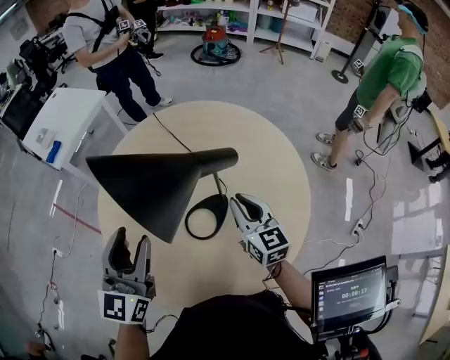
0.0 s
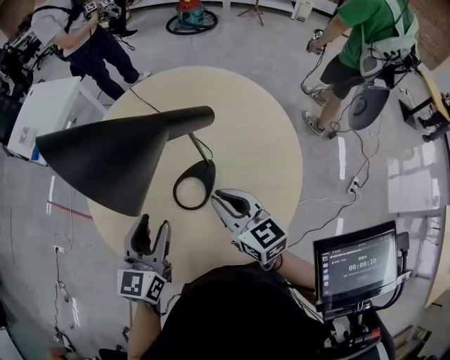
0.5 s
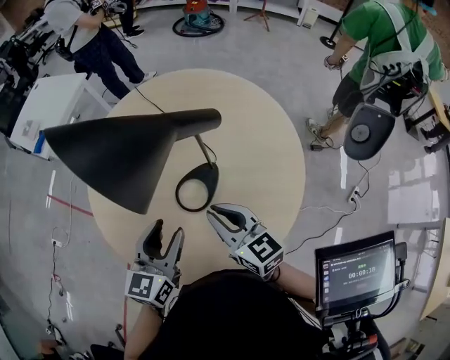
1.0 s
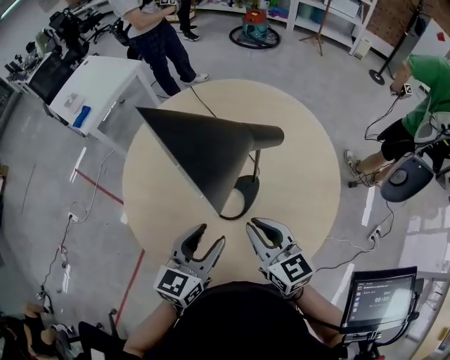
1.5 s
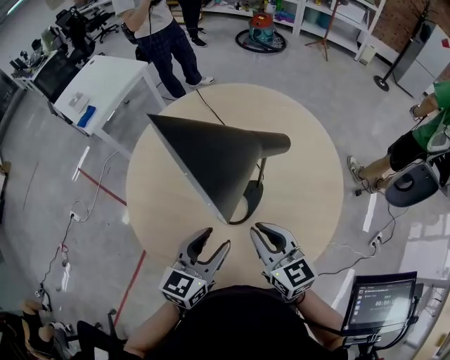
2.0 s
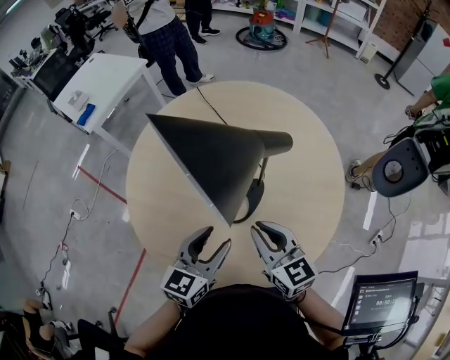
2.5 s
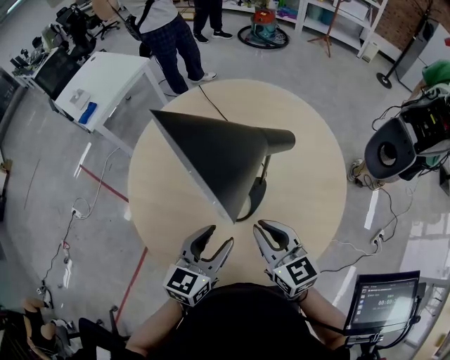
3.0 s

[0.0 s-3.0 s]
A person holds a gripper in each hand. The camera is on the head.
0.0 to 1.5 s: The right gripper moves backward and to the left, approximately 10 cm. Meanwhile the left gripper goes about 15 cm downward and to the right, and turns by roughly 20 degrees.
1.5 to 3.0 s: There are only small adjustments of the grippers.

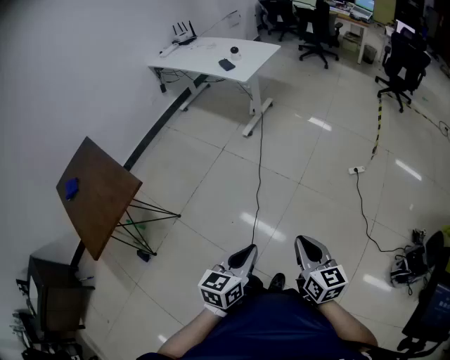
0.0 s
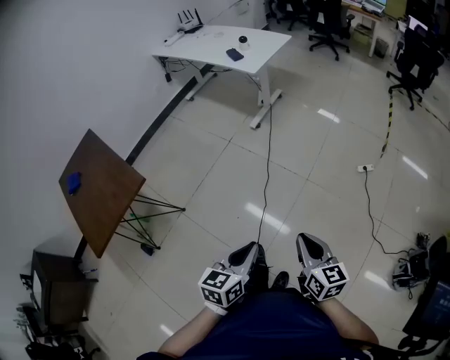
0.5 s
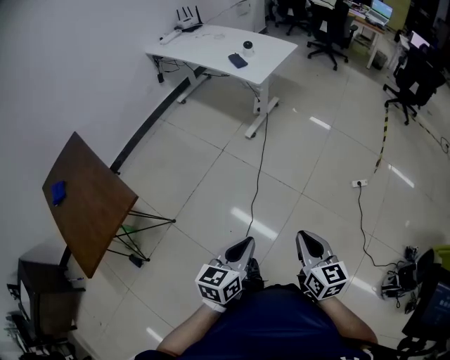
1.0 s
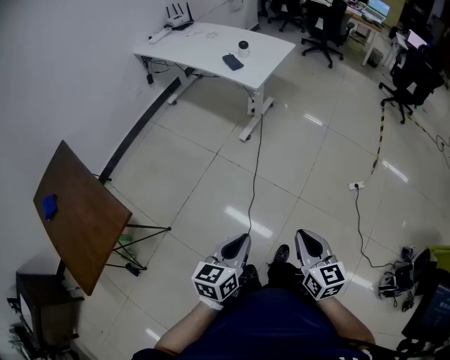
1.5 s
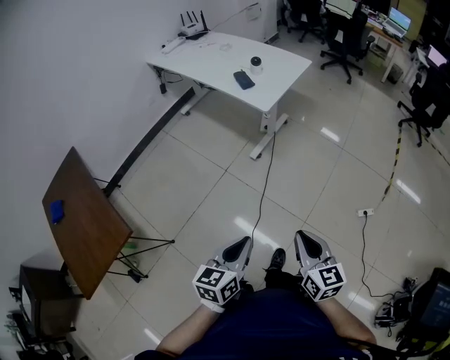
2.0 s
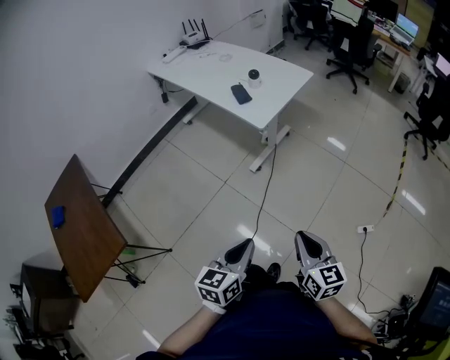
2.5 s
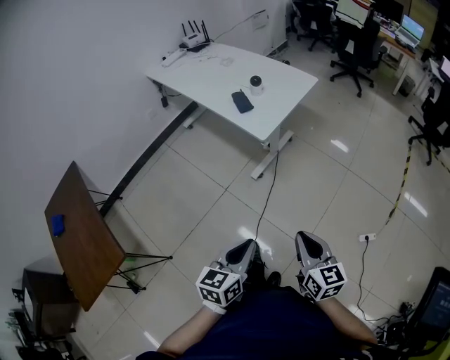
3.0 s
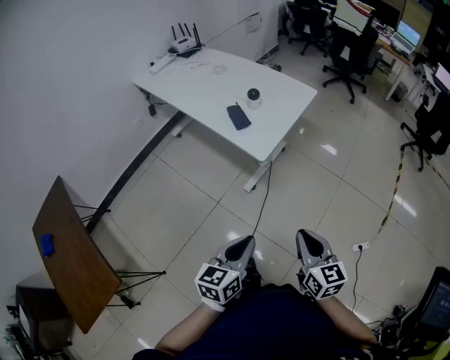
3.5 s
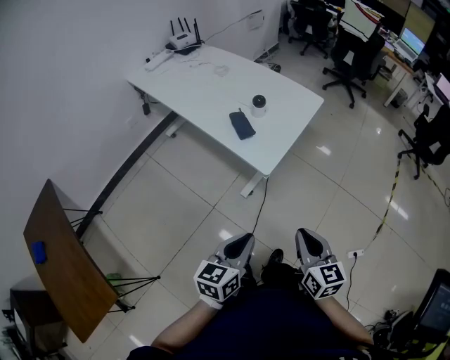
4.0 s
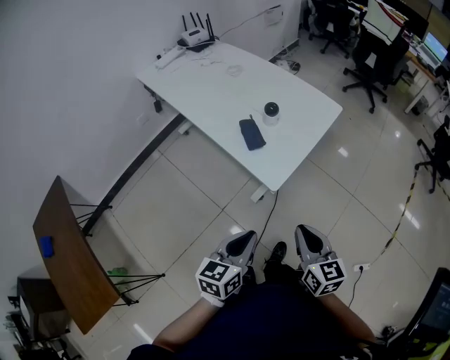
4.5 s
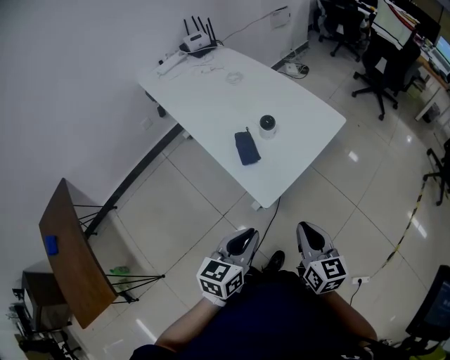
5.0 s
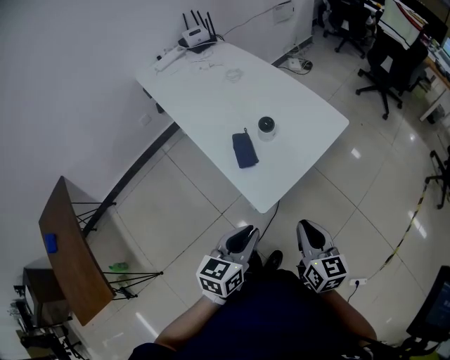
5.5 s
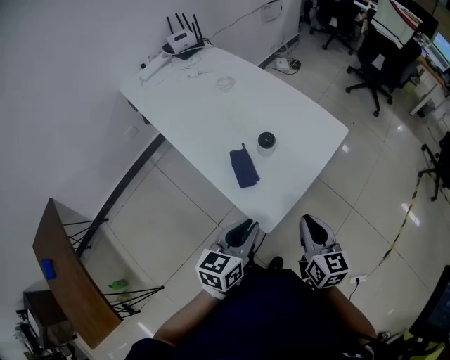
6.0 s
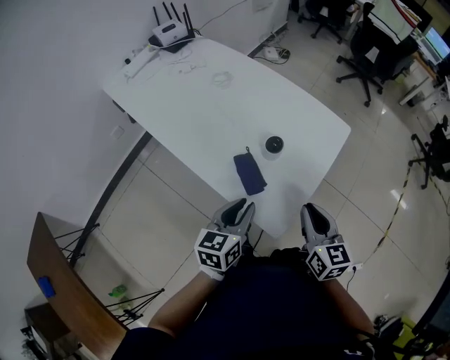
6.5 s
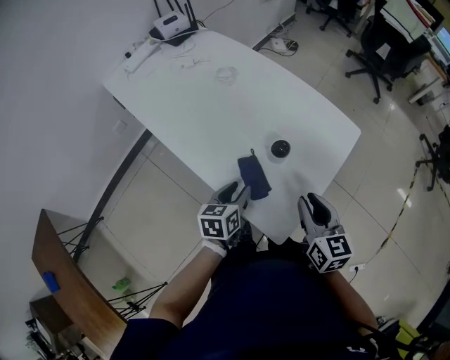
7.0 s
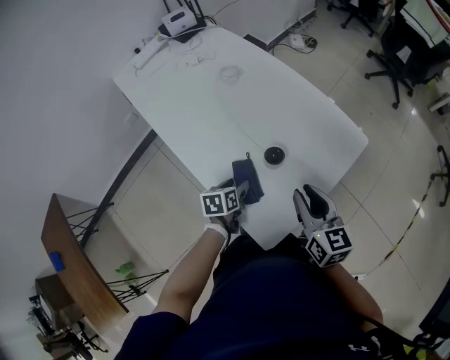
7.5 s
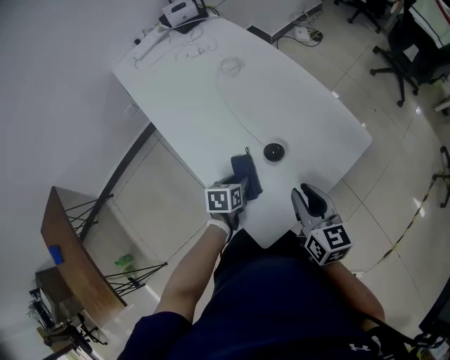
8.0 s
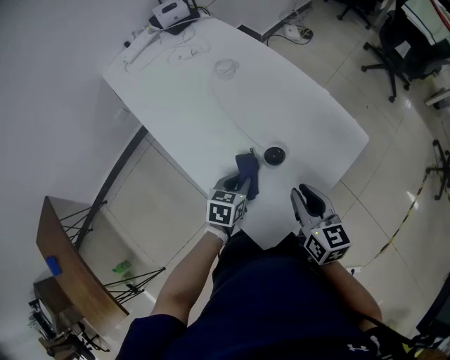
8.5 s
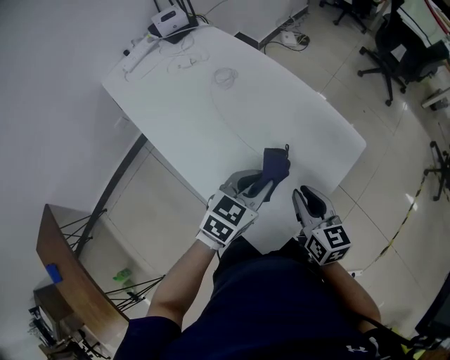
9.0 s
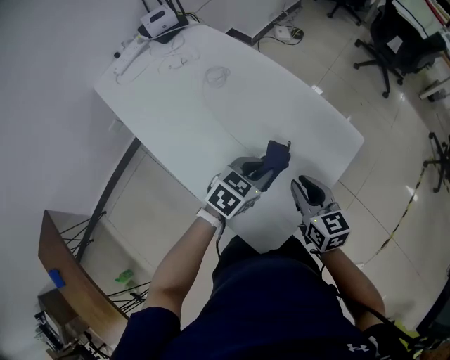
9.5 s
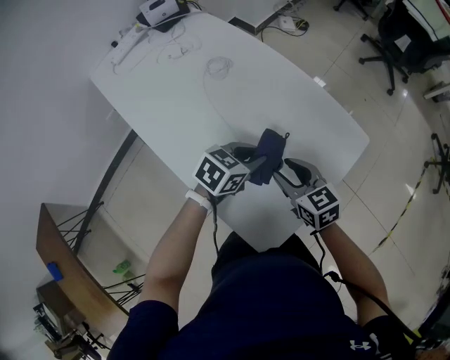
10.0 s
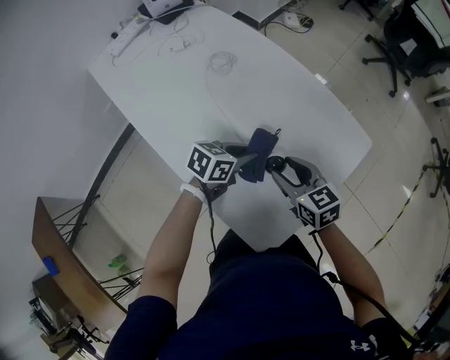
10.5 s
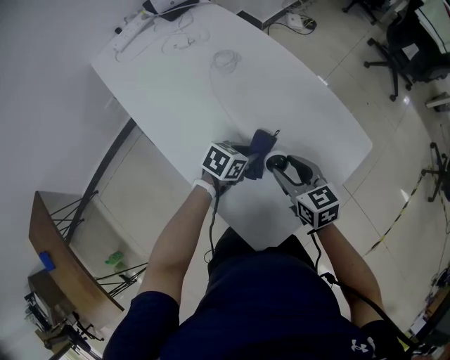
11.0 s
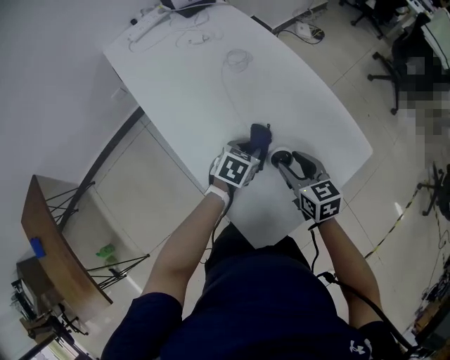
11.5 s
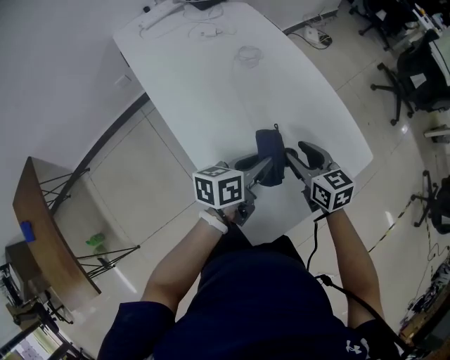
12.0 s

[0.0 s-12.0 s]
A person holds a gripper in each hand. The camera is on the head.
0.0 to 2.0 s: The two grippers go some 35 cm forward.
2.0 to 4.0 s: The grippers both shift forward by about 35 cm.
4.0 to 6.0 s: Both grippers travel together forward, roughly 30 cm.
6.0 to 8.0 s: The left gripper travels downward and forward by roughly 30 cm, tips its fingers downward by about 30 degrees, and opens, then closes once more, while the right gripper shifts about 15 cm forward, and opens its fingers.
8.0 to 10.0 s: The right gripper shifts some 10 cm forward, downward and to the left, while the left gripper travels upward, forward and to the right by about 15 cm, and changes its angle by roughly 50 degrees.
10.0 to 12.0 s: The left gripper goes downward and returns, some 10 cm each way, and turns by some 50 degrees.

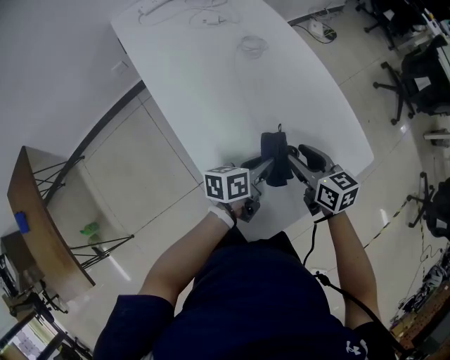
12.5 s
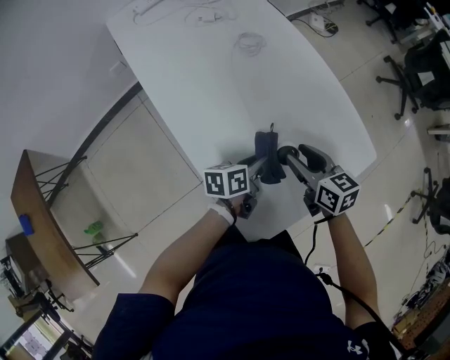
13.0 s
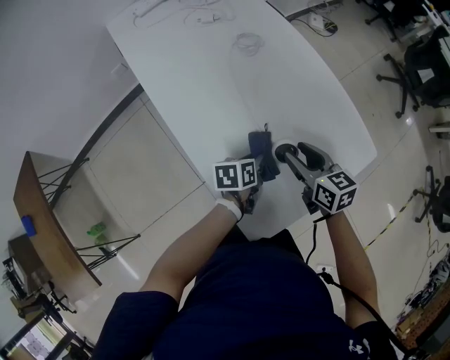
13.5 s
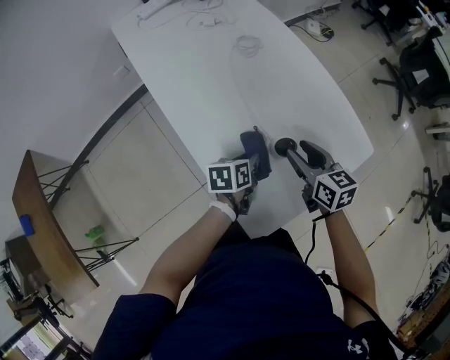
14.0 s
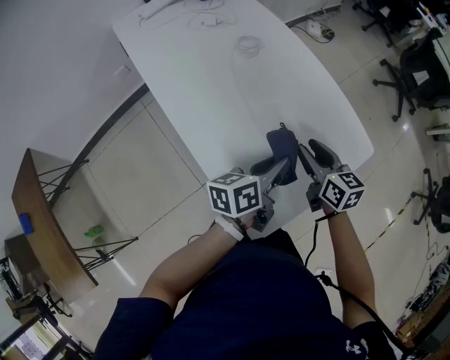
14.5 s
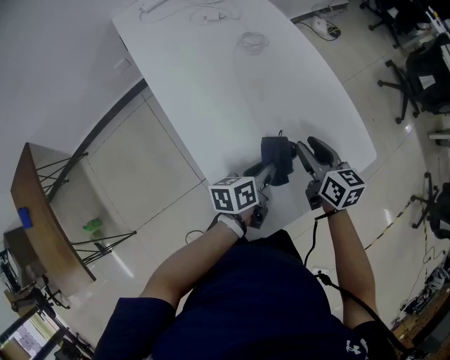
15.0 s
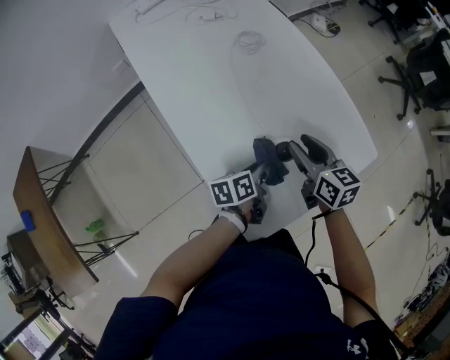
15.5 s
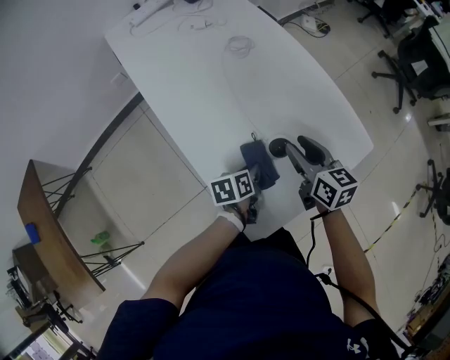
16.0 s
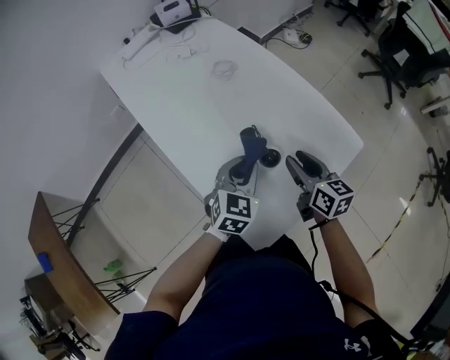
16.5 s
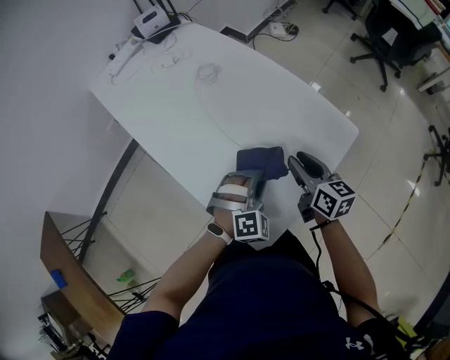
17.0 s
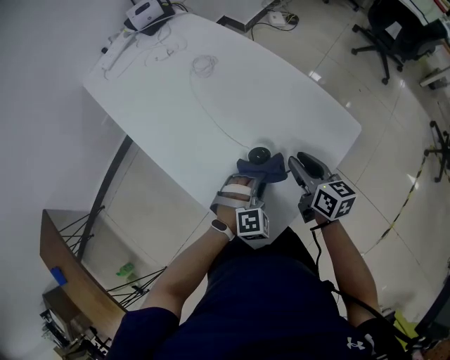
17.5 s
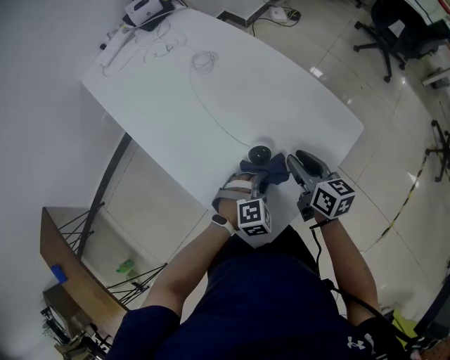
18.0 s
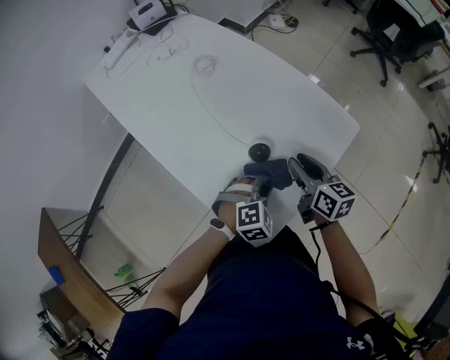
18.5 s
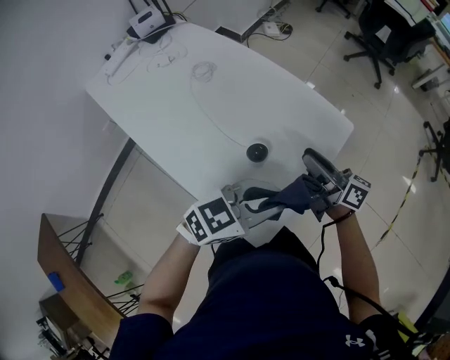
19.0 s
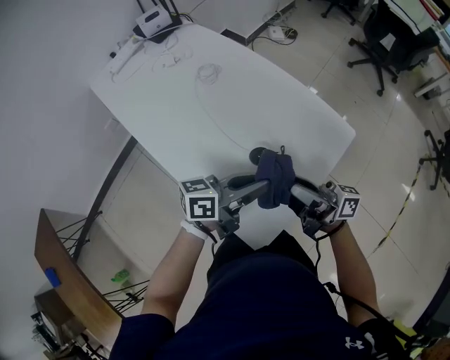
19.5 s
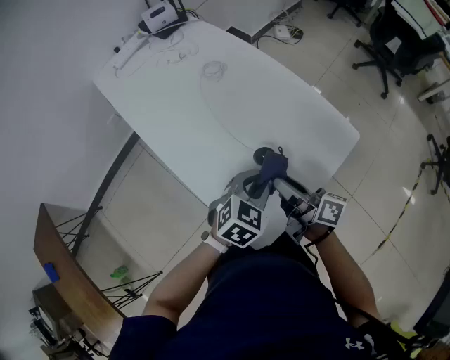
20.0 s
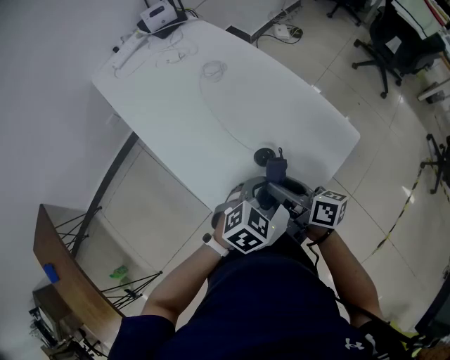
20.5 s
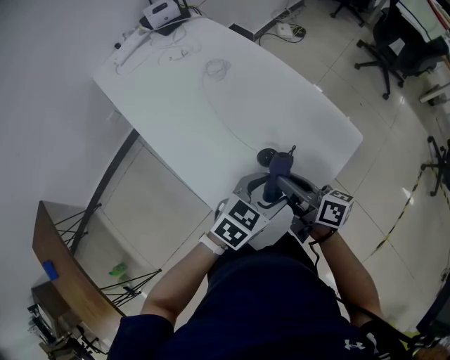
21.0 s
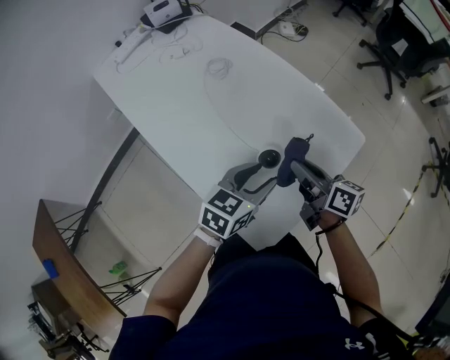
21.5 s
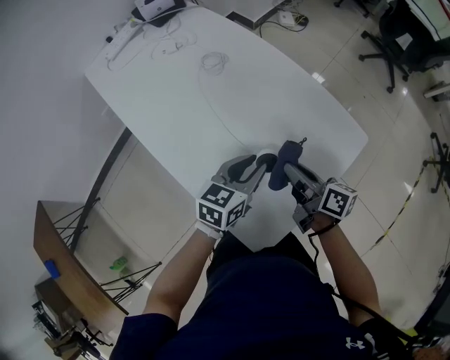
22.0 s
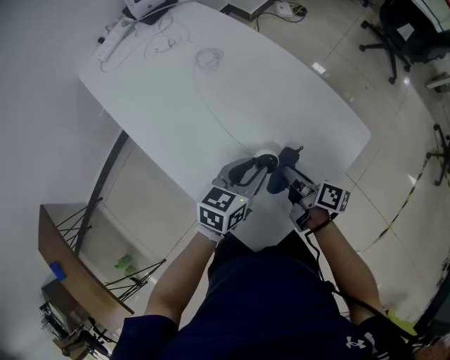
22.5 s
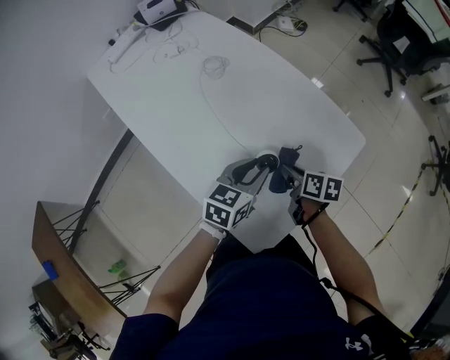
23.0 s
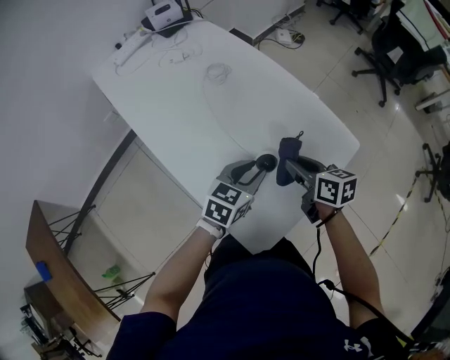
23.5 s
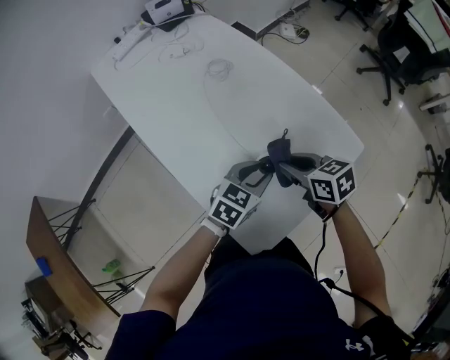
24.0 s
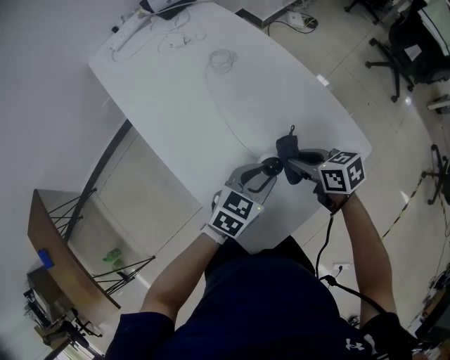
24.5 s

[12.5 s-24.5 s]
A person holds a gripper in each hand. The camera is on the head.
12.5 to 14.5 s: The left gripper is displaced upward by roughly 10 cm.
14.5 to 16.5 s: The left gripper travels downward and back again, approximately 15 cm each way, and twists about 60 degrees clockwise, seen from behind.
16.5 to 18.5 s: The right gripper changes place by about 5 cm, while the left gripper is displaced downward, to the right and backward by about 15 cm, and twists some 40 degrees clockwise, seen from behind.
18.5 to 20.5 s: The left gripper moves upward, approximately 10 cm, swivels roughly 30 degrees, and opens. Meanwhile the right gripper shifts roughly 10 cm to the left and backward, changes its angle by some 30 degrees, and opens.
20.5 to 22.5 s: The left gripper shifts about 10 cm forward, and rotates approximately 40 degrees, while the right gripper goes approximately 10 cm downward and forward, turns by roughly 20 degrees, and closes its fingers.
22.5 to 24.5 s: The right gripper moves about 5 cm, and rolls counterclockwise, seen from behind, by roughly 40 degrees.
